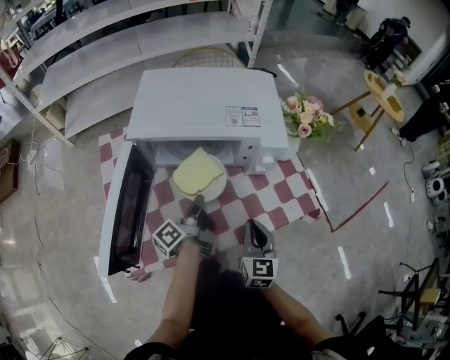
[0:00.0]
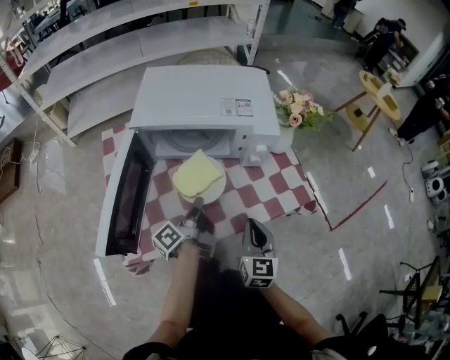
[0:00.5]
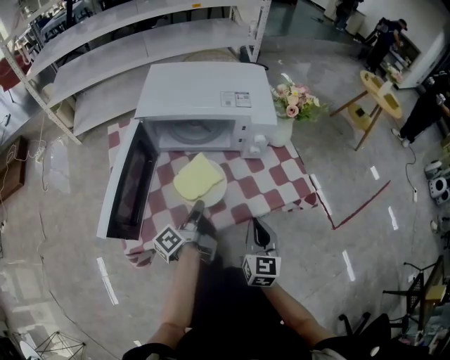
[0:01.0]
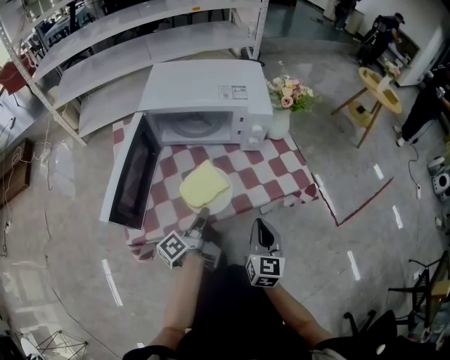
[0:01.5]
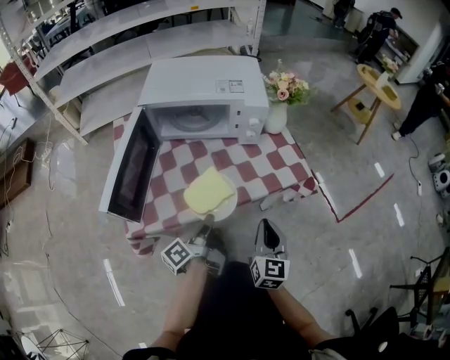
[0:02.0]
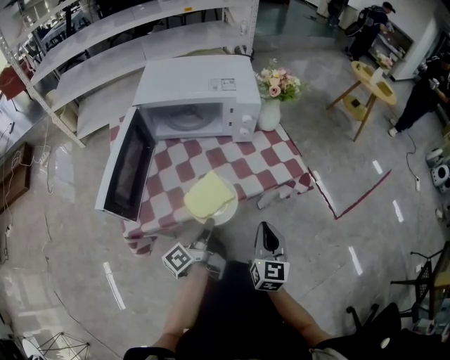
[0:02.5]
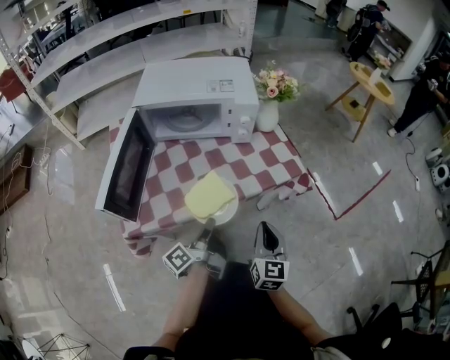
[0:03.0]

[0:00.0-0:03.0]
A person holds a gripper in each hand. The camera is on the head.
0:00.0 to 0:01.5: The right gripper goes roughly 15 cm backward and to the right. The left gripper is displaced backward by some 15 cm.
0:01.5 to 0:03.0: The right gripper changes place by approximately 5 cm, while the left gripper shifts approximately 10 cm backward and to the right.

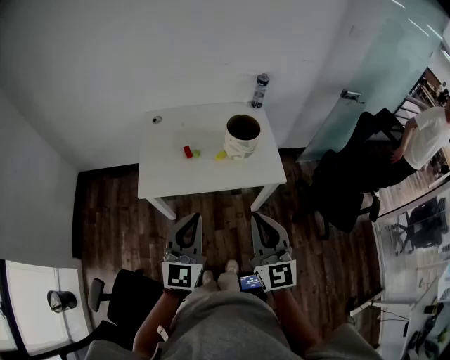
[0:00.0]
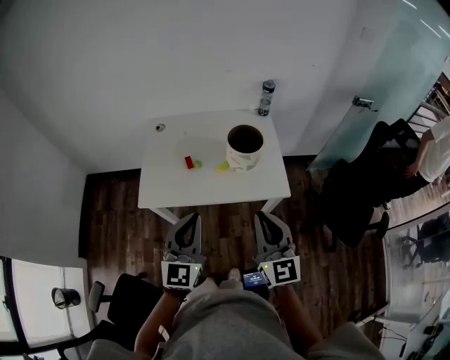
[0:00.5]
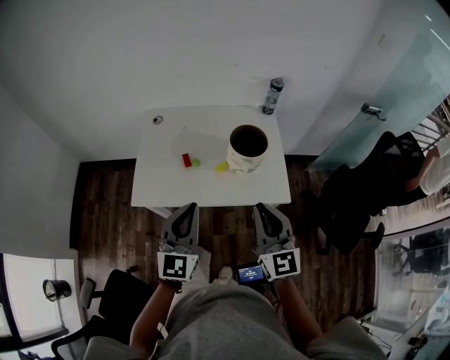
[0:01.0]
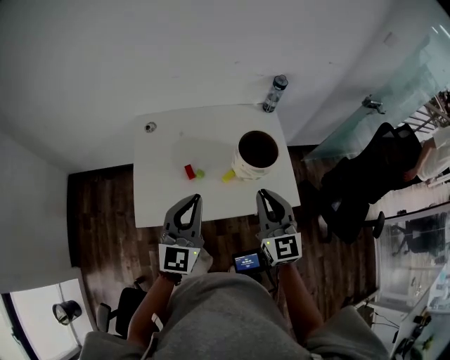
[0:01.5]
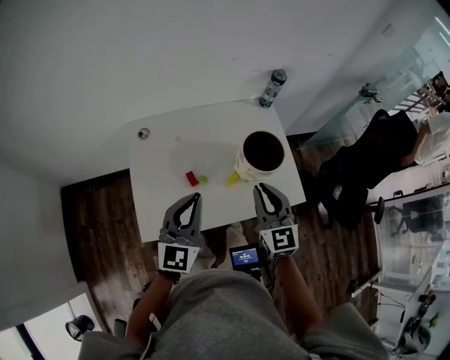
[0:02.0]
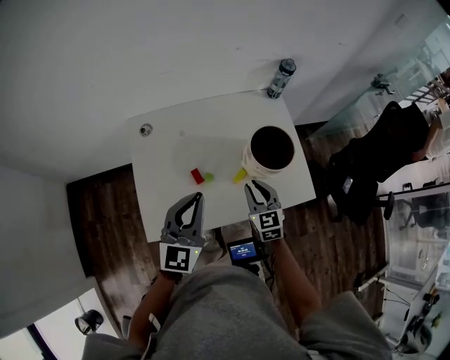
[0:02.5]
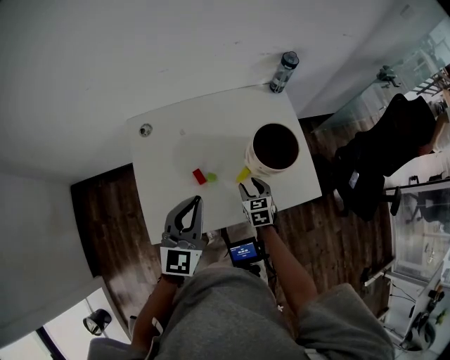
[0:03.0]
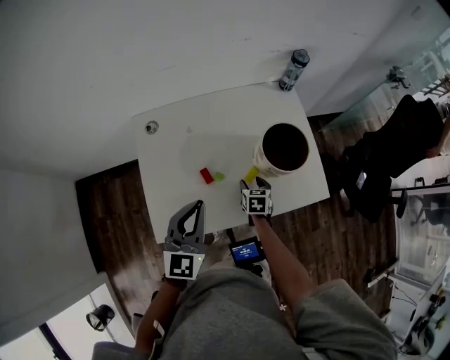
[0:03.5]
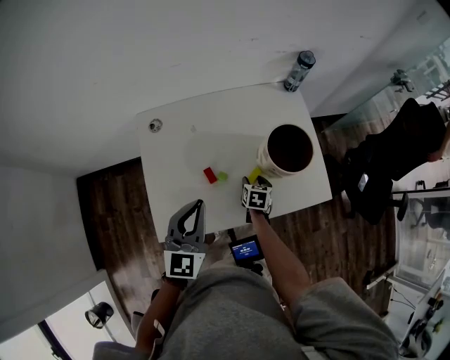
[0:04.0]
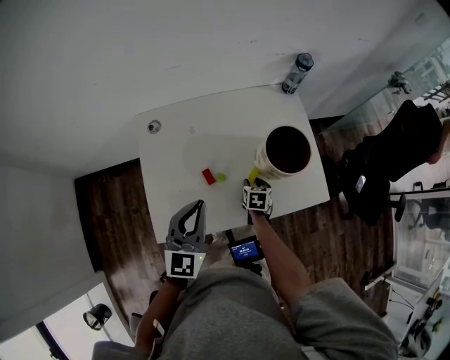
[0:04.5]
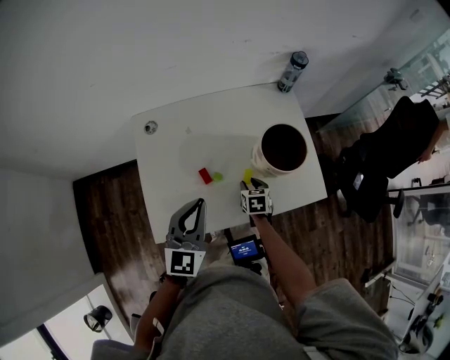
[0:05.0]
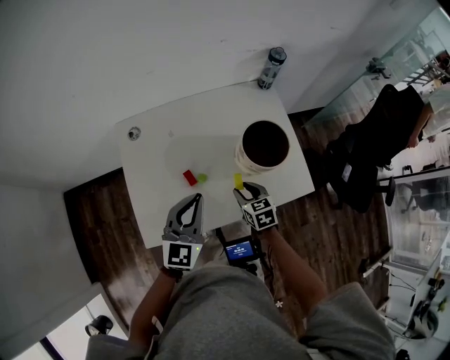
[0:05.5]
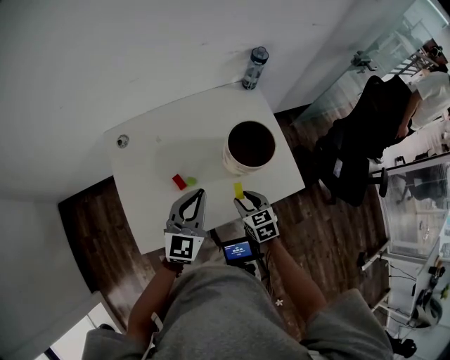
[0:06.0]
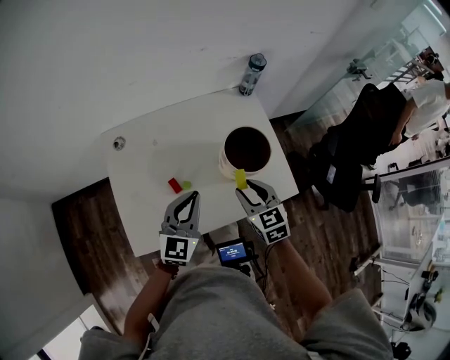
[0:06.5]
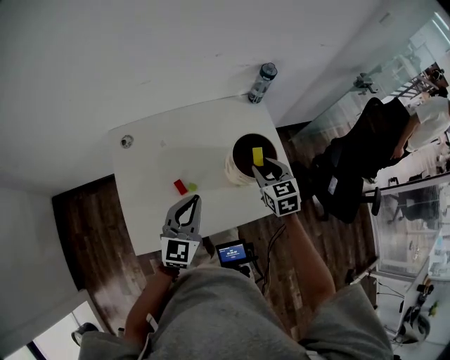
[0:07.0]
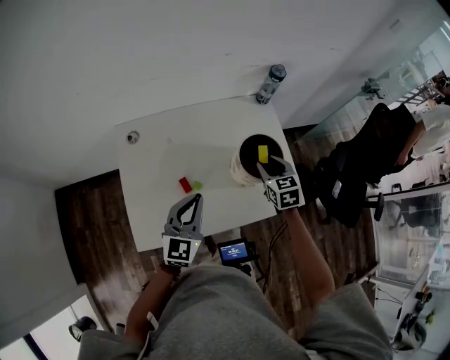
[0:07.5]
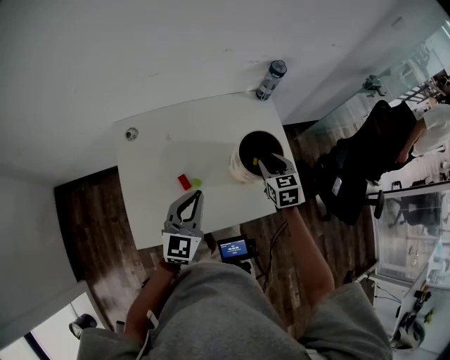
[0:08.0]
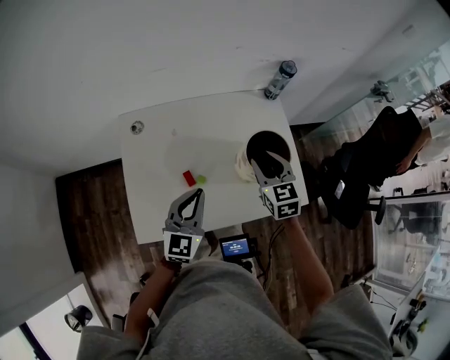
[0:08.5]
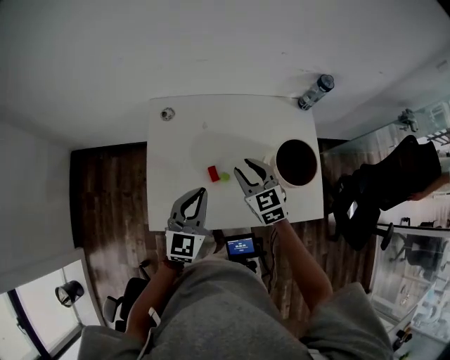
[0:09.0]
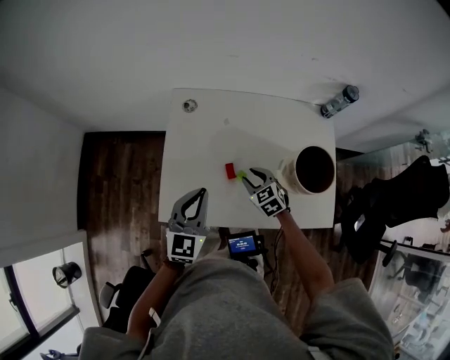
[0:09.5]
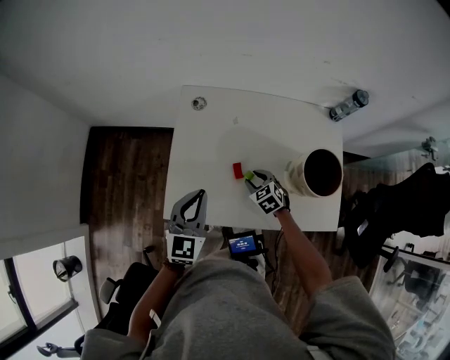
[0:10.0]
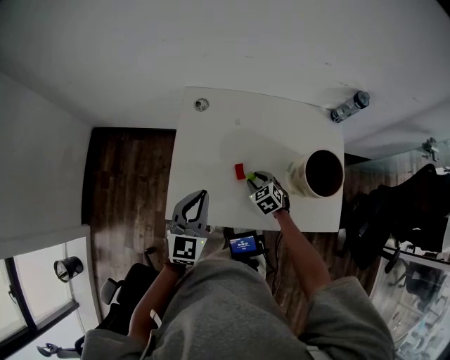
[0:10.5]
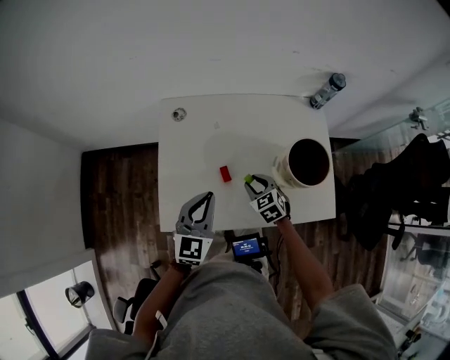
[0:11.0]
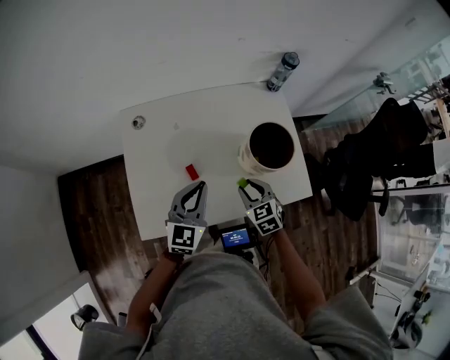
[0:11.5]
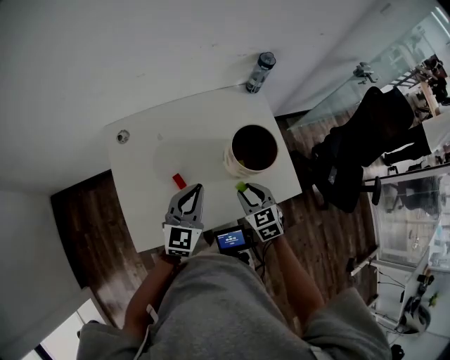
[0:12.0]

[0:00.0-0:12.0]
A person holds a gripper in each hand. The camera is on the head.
0:00.0 to 0:02.0: Both grippers travel together forward, some 30 cm.
0:02.0 to 0:04.0: The left gripper travels downward by about 5 cm. Meanwhile the right gripper travels downward by approximately 35 cm, angles its fingers downward, by approximately 40 degrees, and opens.
0:04.0 to 0:06.0: The right gripper heads upward and backward, covering approximately 15 cm, turns by some 30 degrees, and closes its fingers. Meanwhile the left gripper heads to the right, covering about 10 cm.
0:06.0 to 0:08.0: The right gripper shifts some 15 cm forward and upward.
0:08.0 to 0:10.0: The right gripper ends up some 30 cm from where it was, and swivels some 40 degrees. Meanwhile the left gripper moves roughly 15 cm, and turns by approximately 20 degrees.
0:10.0 to 0:12.0: The right gripper moves approximately 20 cm, and changes its angle by approximately 30 degrees. The left gripper shifts by about 20 cm, and changes its angle by approximately 30 degrees.

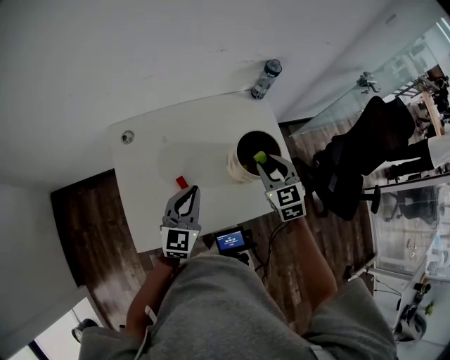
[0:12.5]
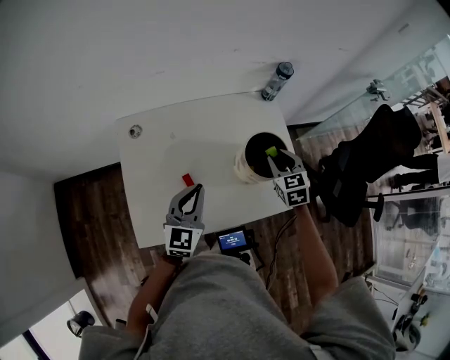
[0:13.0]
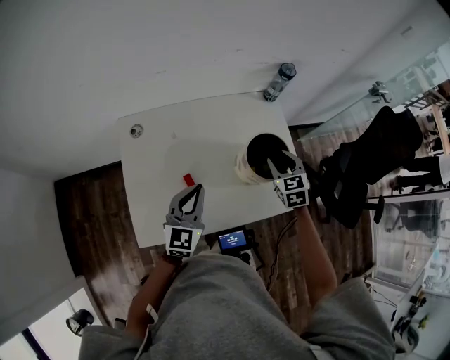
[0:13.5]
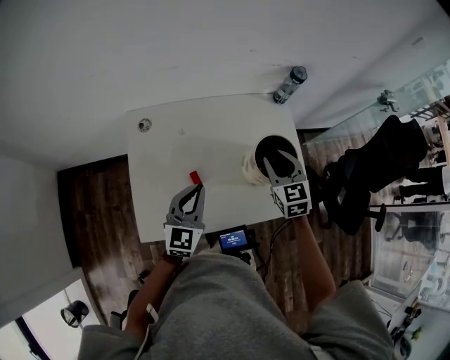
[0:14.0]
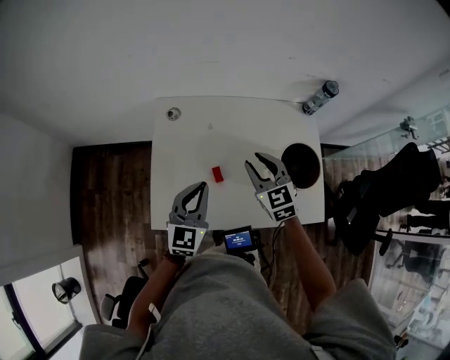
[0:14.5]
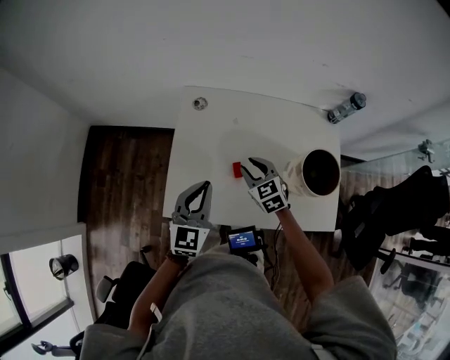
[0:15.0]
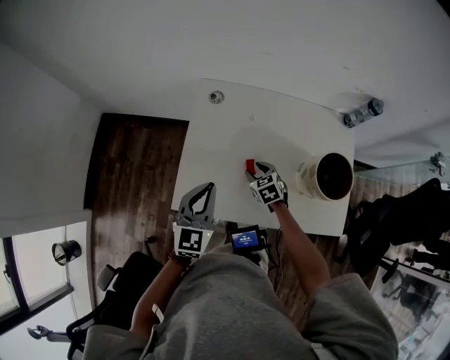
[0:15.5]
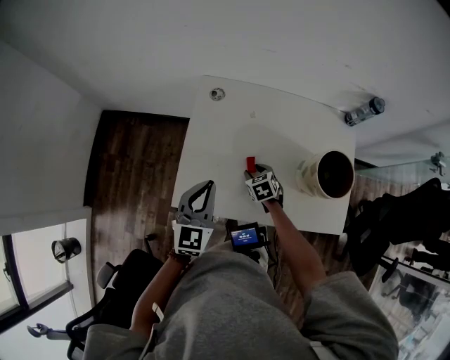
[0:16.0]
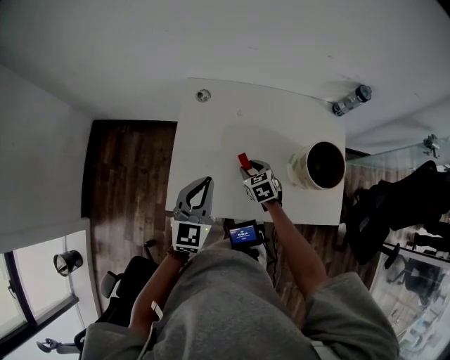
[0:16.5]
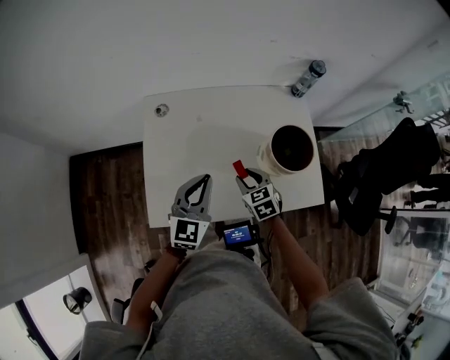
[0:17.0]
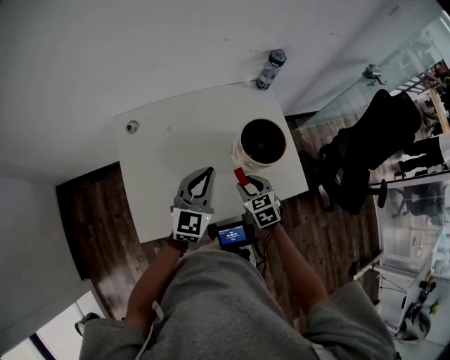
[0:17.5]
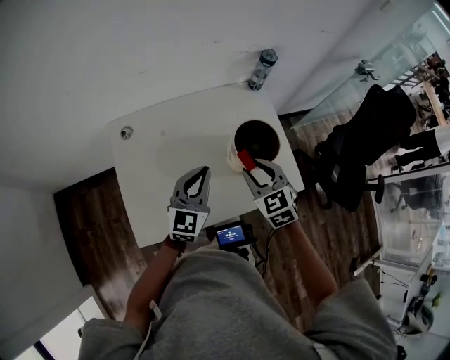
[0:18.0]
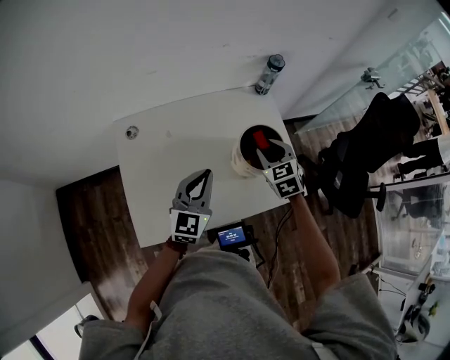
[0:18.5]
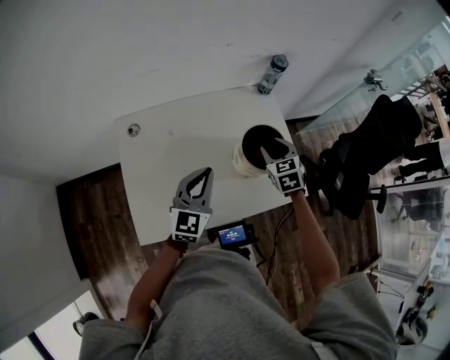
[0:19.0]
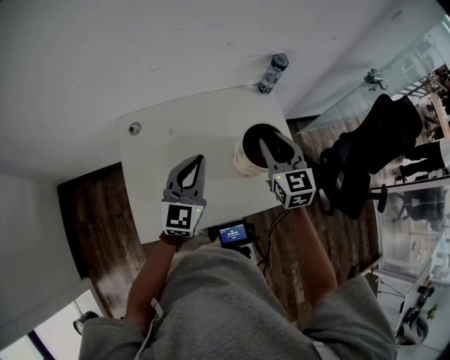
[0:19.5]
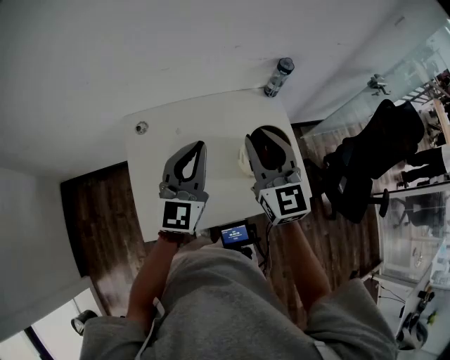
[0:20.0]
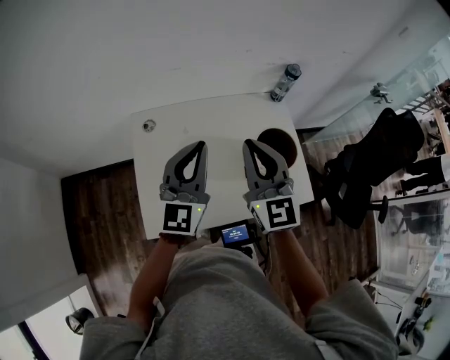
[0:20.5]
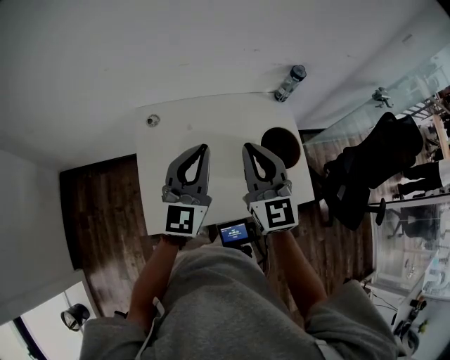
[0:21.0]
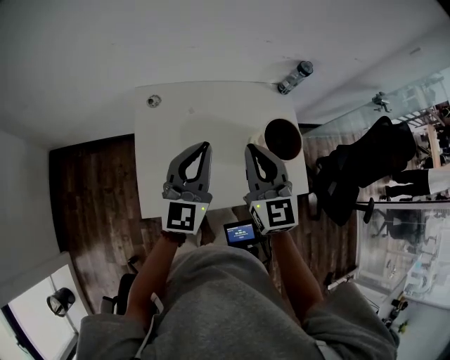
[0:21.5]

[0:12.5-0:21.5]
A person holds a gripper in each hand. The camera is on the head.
0:12.5 to 0:14.5: The left gripper heads to the left, covering about 10 cm. Meanwhile the right gripper shifts about 15 cm to the left, and rotates some 20 degrees.
0:14.5 to 0:17.0: The right gripper is displaced downward and backward by some 15 cm, and swivels about 20 degrees. The left gripper moves approximately 10 cm to the left and comes back.
0:17.0 to 0:19.5: The right gripper goes up and down, approximately 20 cm each way, reversing 2 times, and swivels roughly 30 degrees, while the left gripper moves forward, upward and to the right, approximately 10 cm.
0:19.5 to 0:21.5: The right gripper heads to the left and backward, covering some 20 cm, and closes up; the left gripper goes some 10 cm to the left and upward.

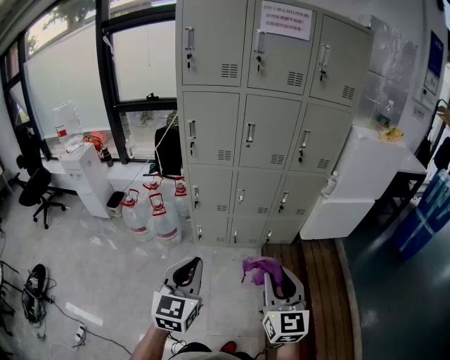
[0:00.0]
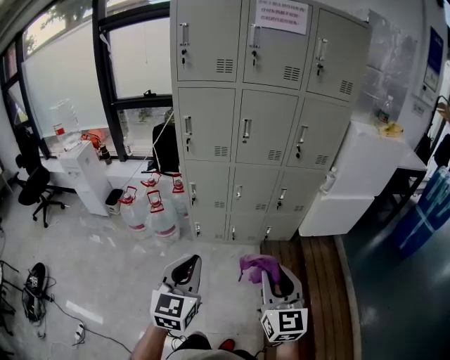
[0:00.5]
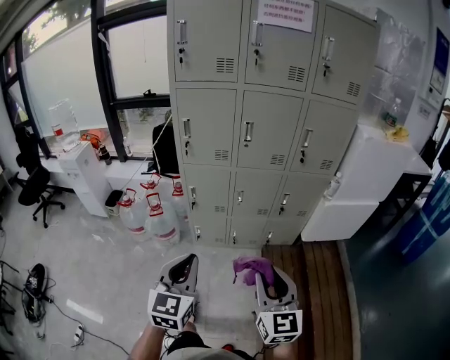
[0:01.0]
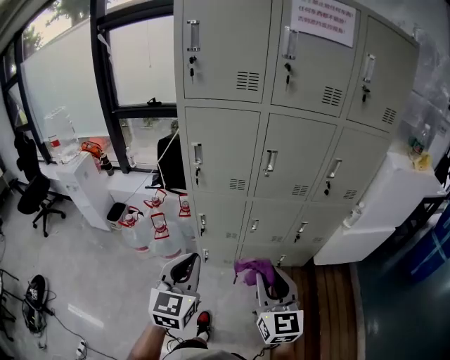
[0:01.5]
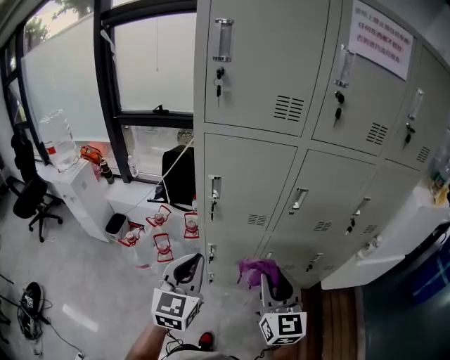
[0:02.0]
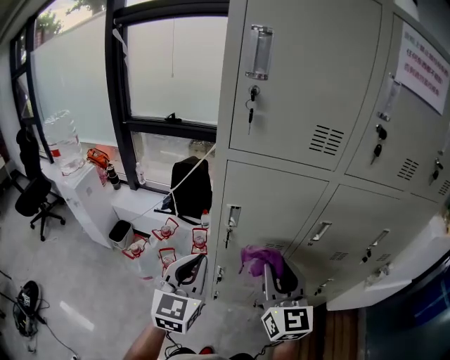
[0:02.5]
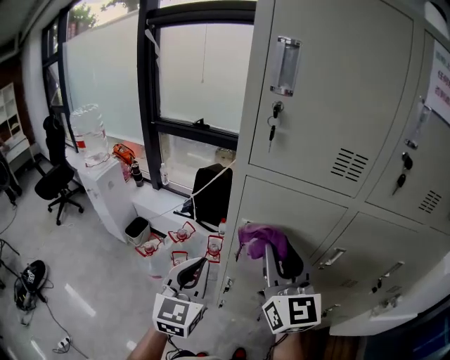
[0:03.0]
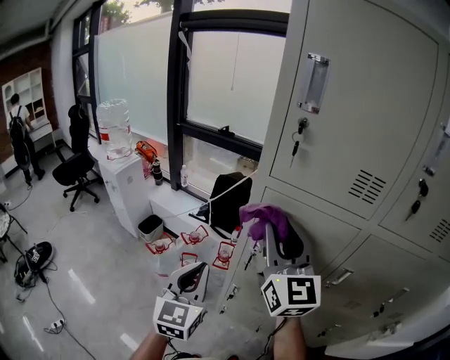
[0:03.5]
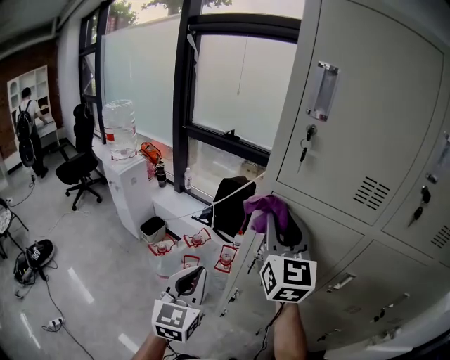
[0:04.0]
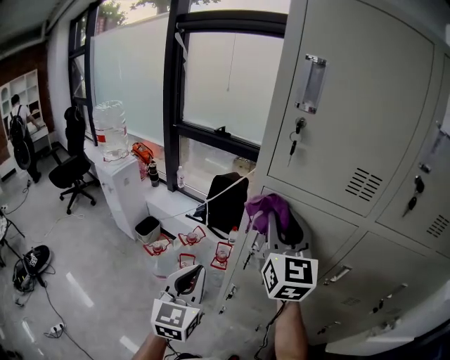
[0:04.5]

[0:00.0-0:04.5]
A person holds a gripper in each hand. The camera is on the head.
0:00.0 to 0:02.0: The pair of grippers is taken forward, about 40 cm.
0:02.0 to 0:04.5: The left gripper is displaced forward and to the left by some 10 cm, and swivels some 20 degrees. Meanwhile the right gripper heads forward and upward, covering roughly 30 cm.
